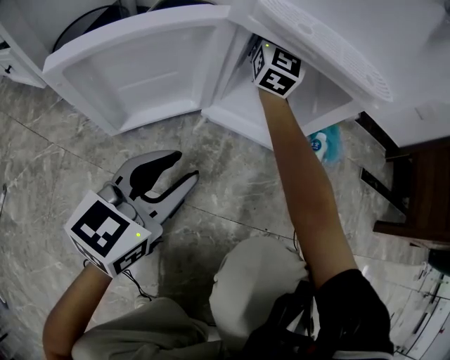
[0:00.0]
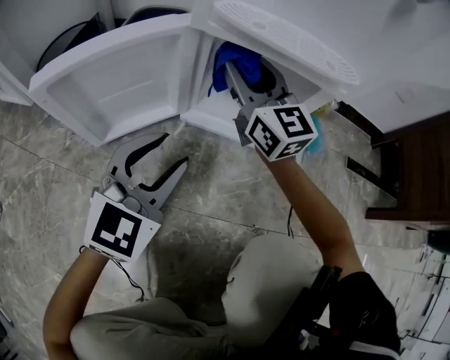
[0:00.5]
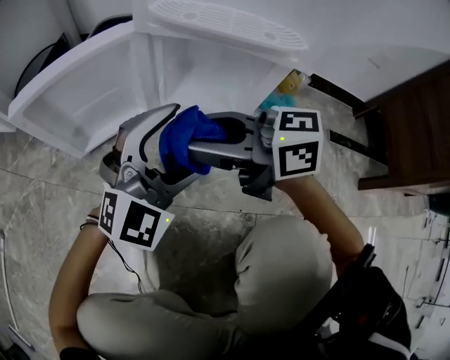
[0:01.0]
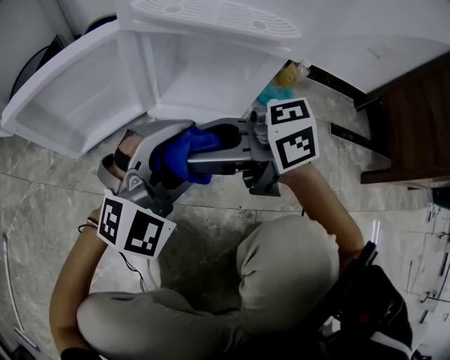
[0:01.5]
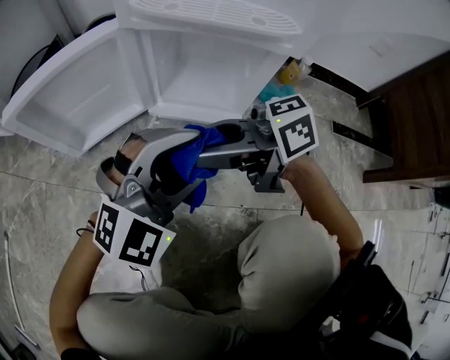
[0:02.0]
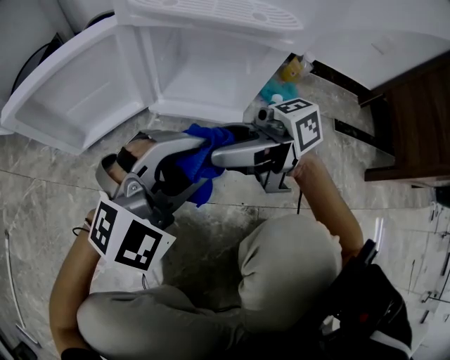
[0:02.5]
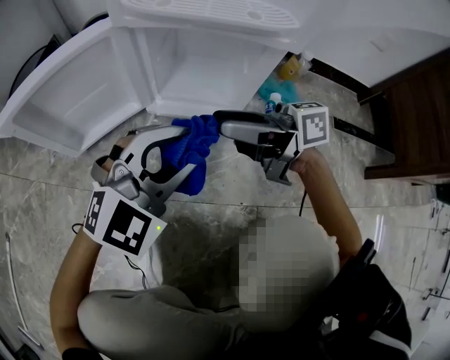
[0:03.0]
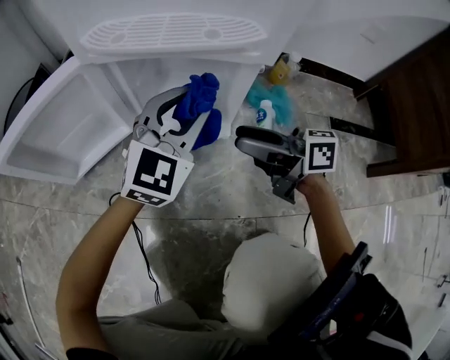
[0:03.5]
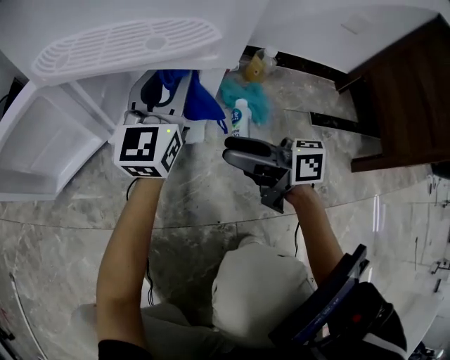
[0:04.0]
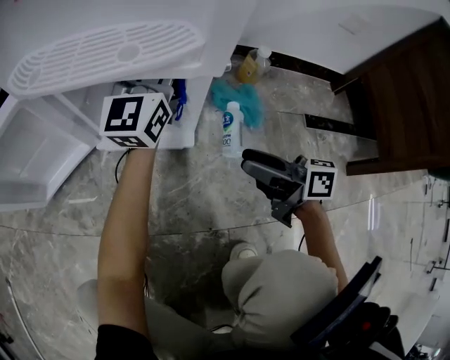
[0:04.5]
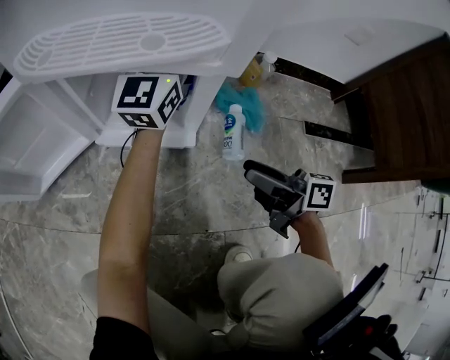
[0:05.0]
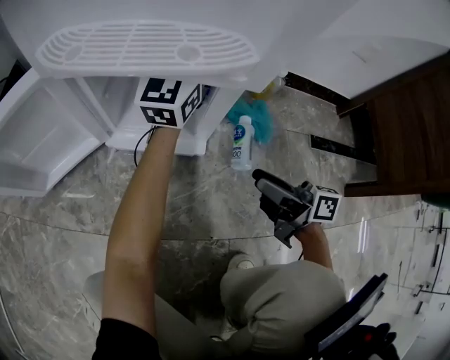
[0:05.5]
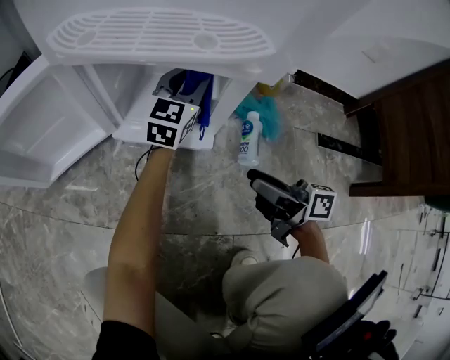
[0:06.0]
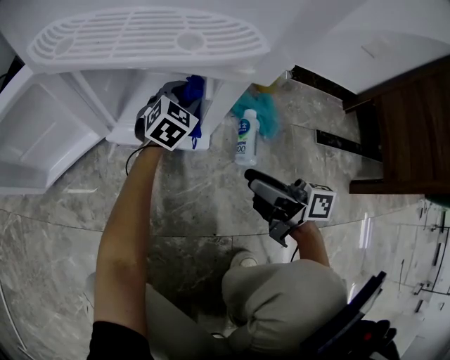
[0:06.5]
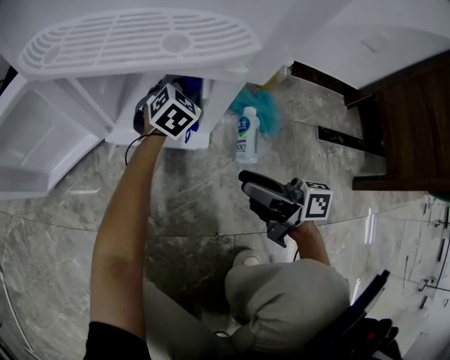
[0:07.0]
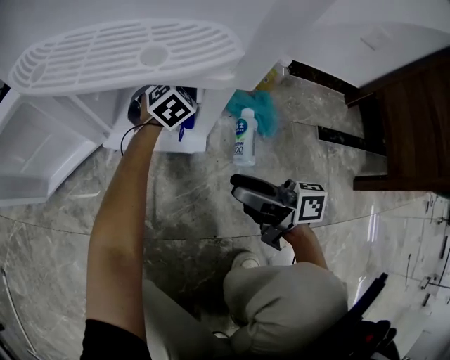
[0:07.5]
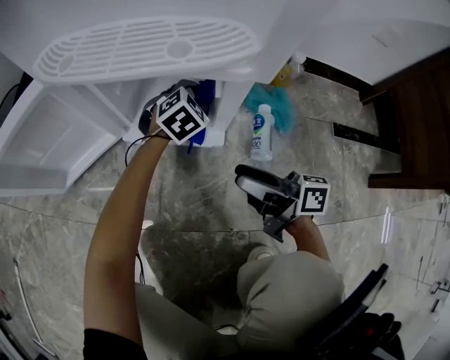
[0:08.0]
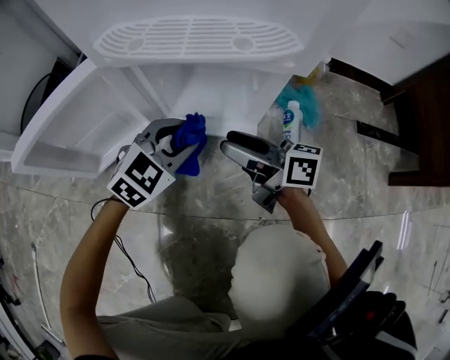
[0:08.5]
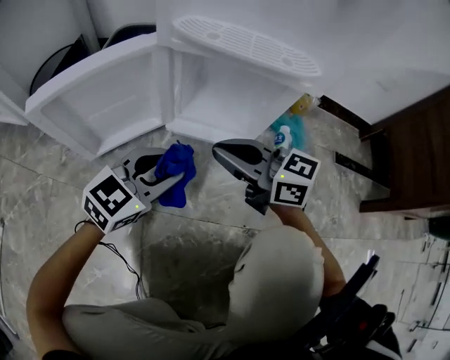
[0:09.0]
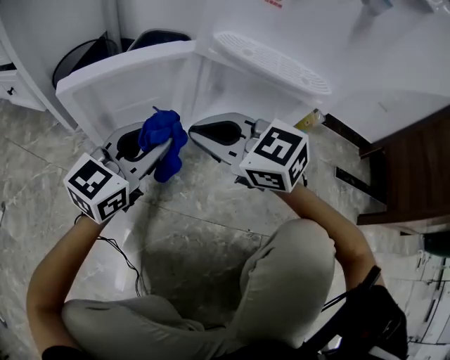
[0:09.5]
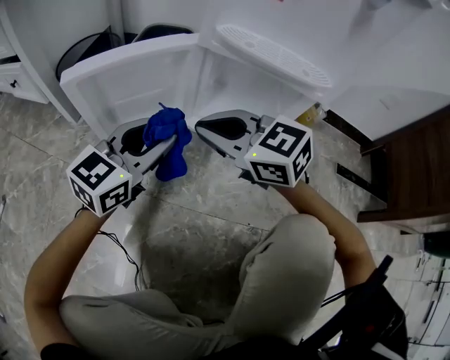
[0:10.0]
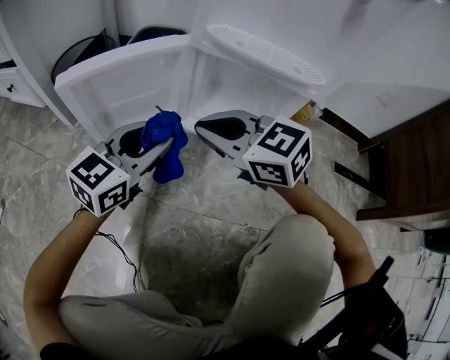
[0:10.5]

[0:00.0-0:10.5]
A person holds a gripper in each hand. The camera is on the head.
0:00.0 to 0:02.0: The left gripper moves roughly 15 cm, rotates around the line of its fingers by some 60 degrees, clockwise from behind, and opens, then closes again; the right gripper moves approximately 35 cm, and turns by approximately 100 degrees.
0:02.0 to 0:04.0: The right gripper changes place by approximately 20 cm, and rotates roughly 40 degrees. Meanwhile the left gripper moves about 25 cm, and swivels about 60 degrees.
0:04.0 to 0:06.5: The left gripper travels downward by roughly 20 cm, and tilts its fingers approximately 40 degrees downward. The right gripper changes place by approximately 5 cm.
0:06.5 to 0:08.5: The right gripper moves to the left and forward, some 15 cm. The left gripper shifts about 25 cm to the left, backward and upward.
0:08.5 to 0:10.5: The two grippers go approximately 20 cm to the left and upward. The left gripper swivels roughly 40 degrees. Meanwhile the right gripper twists approximately 50 degrees counterclockwise, seen from behind, and closes its fingers.

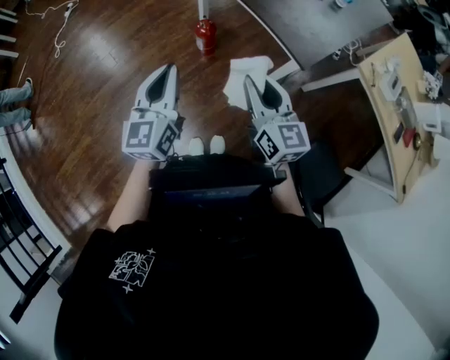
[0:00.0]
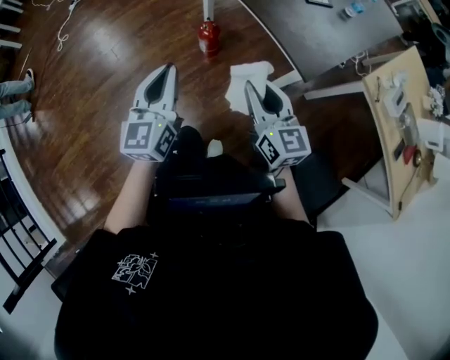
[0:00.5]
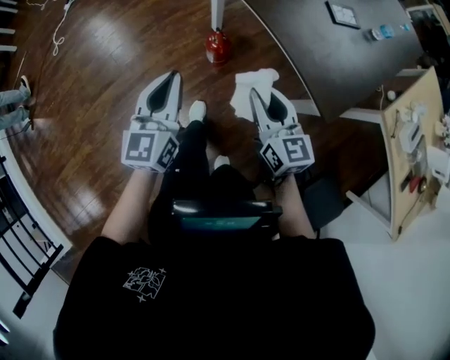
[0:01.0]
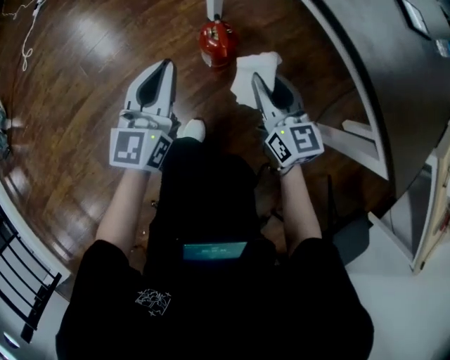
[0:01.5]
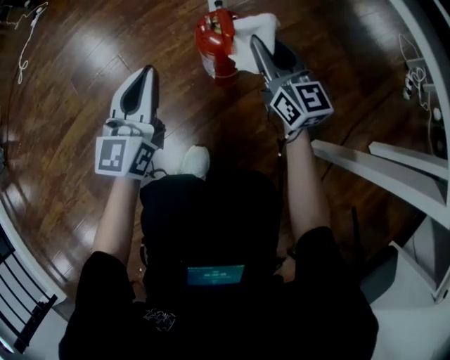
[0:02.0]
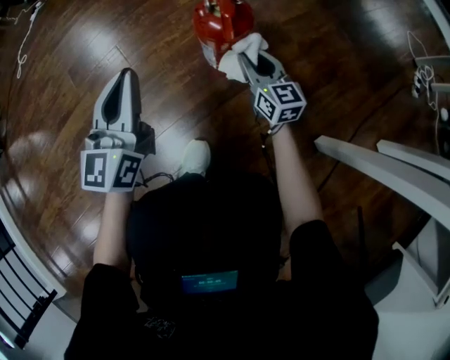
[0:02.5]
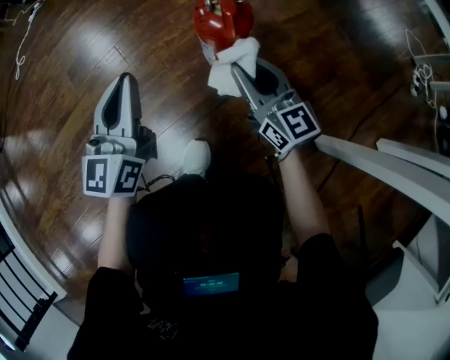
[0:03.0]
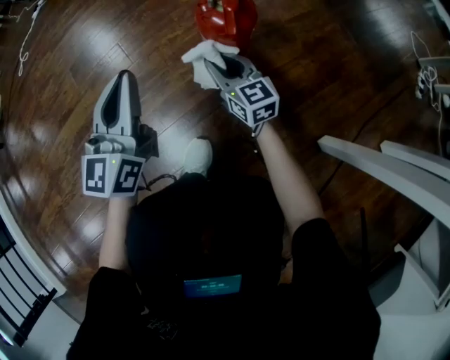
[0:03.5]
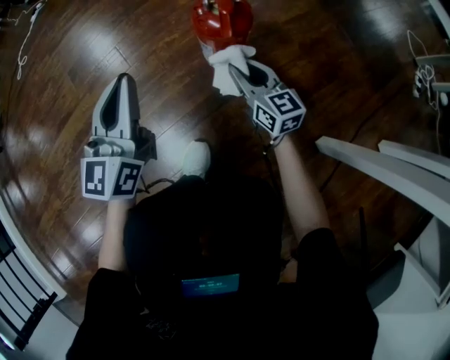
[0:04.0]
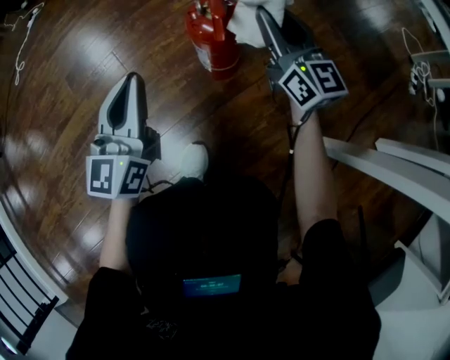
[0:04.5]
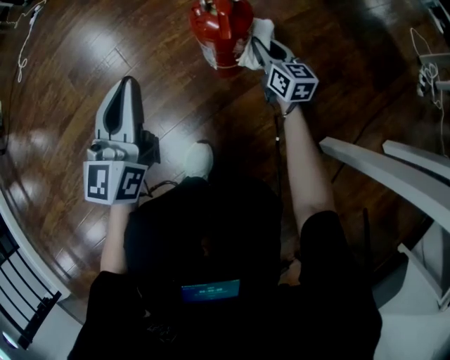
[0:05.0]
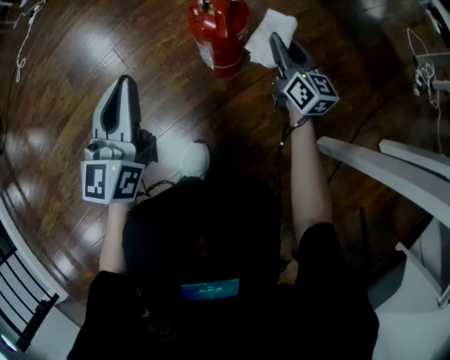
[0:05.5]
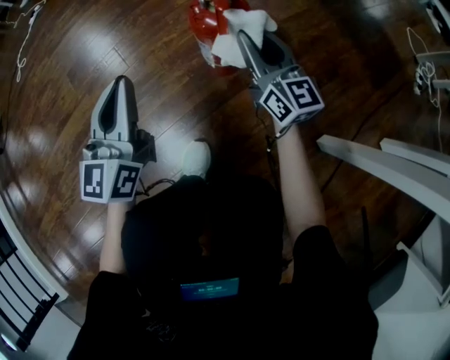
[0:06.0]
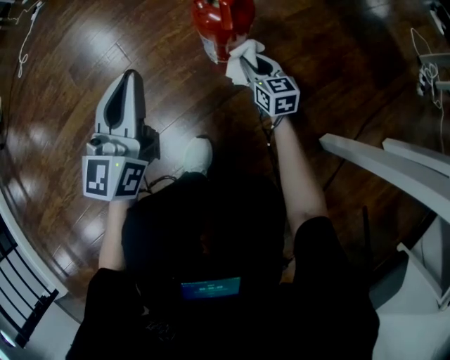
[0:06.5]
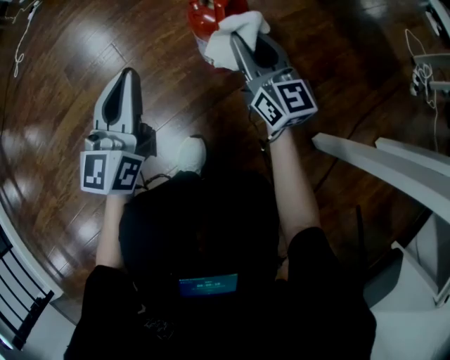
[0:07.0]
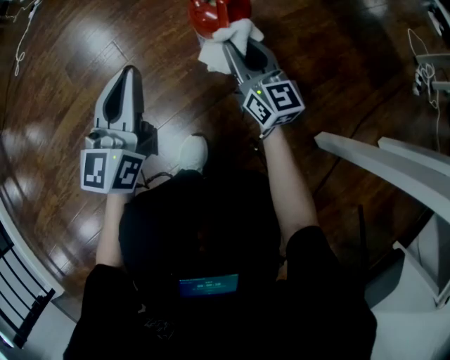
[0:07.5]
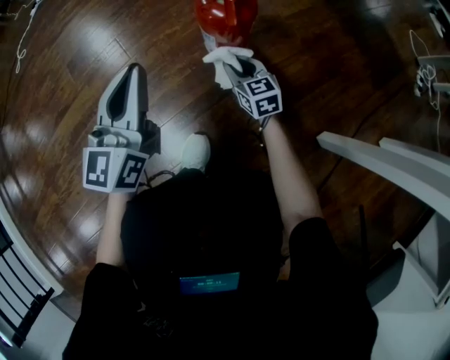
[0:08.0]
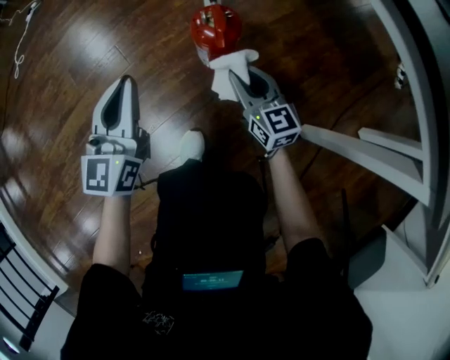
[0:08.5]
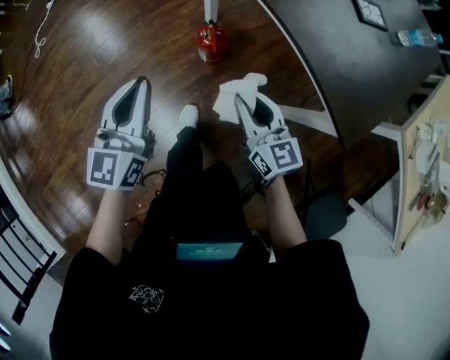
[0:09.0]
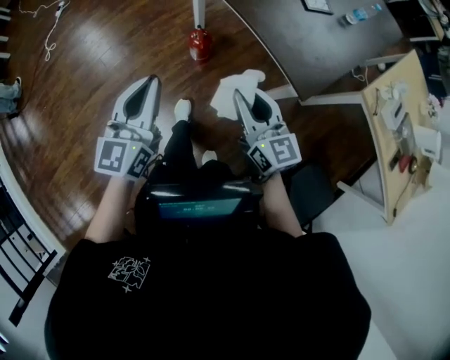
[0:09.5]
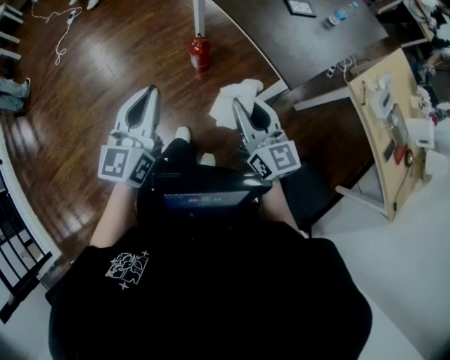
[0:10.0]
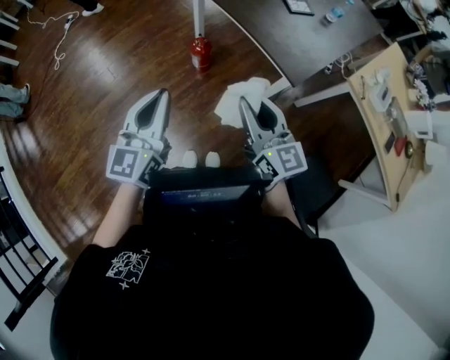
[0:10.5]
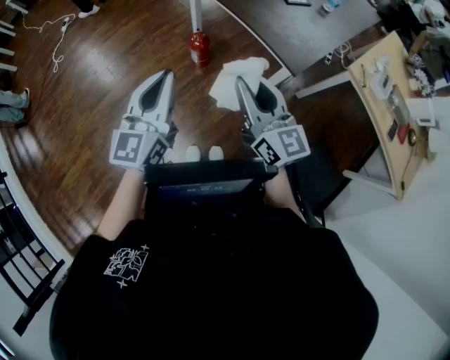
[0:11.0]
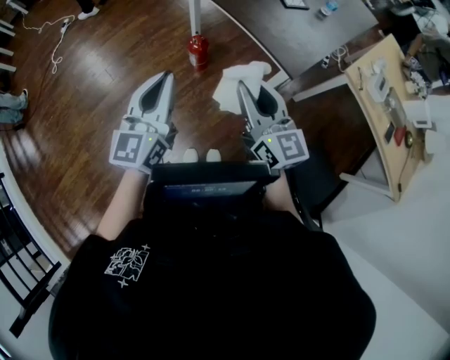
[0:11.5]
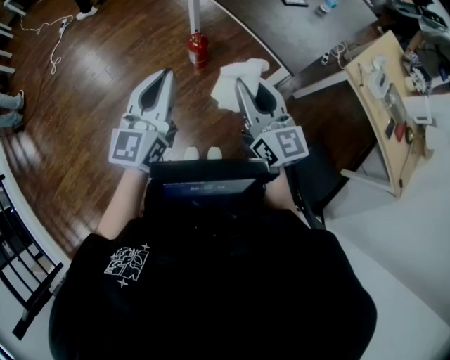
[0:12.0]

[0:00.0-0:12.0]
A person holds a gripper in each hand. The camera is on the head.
0:00.0 to 0:02.0: Both grippers travel together downward and forward, about 70 cm.
0:02.0 to 0:04.0: The right gripper moves up and down over about 15 cm, changing direction 2 times.
0:04.0 to 0:06.0: The right gripper goes up and down, approximately 20 cm each way, reversing 2 times.
0:06.0 to 0:08.0: The right gripper swings up and down, approximately 20 cm each way, with 2 reversals, and tilts its fingers some 30 degrees downward.
0:08.0 to 0:10.0: Both grippers move upward and backward, roughly 80 cm. The right gripper changes its angle by about 30 degrees.
0:10.0 to 0:12.0: The right gripper heads upward, covering about 5 cm.

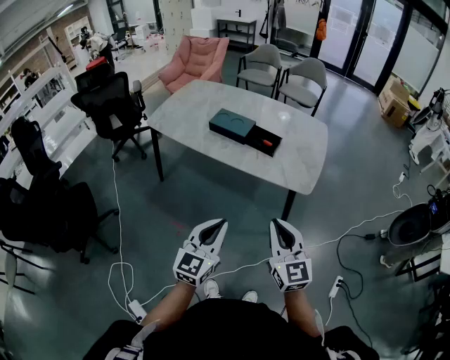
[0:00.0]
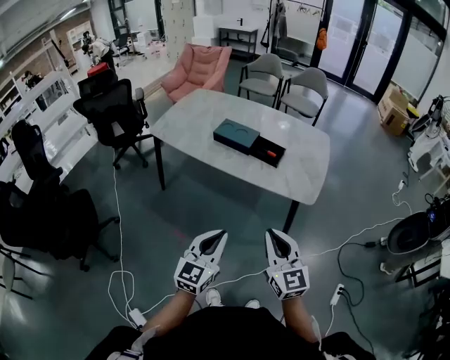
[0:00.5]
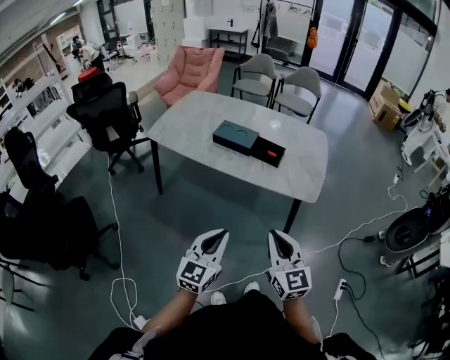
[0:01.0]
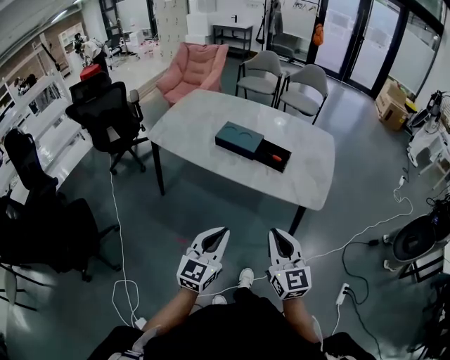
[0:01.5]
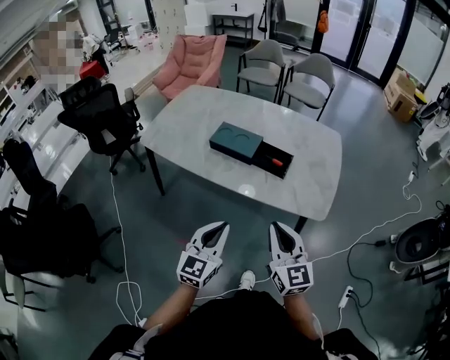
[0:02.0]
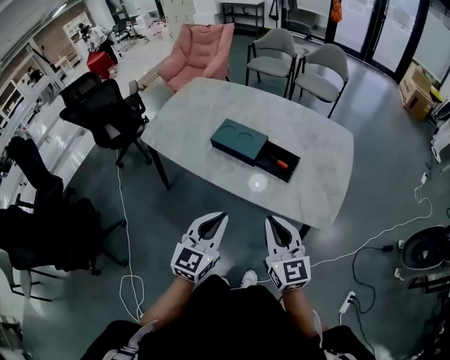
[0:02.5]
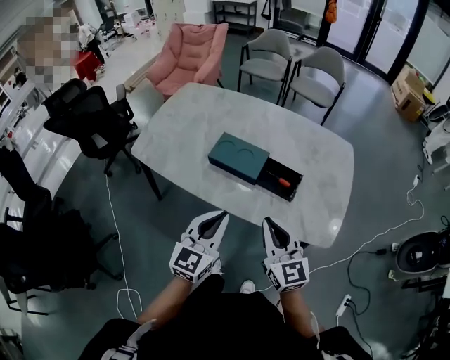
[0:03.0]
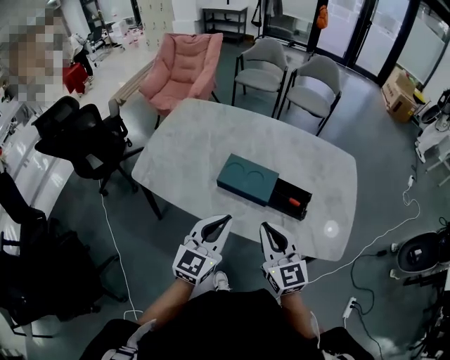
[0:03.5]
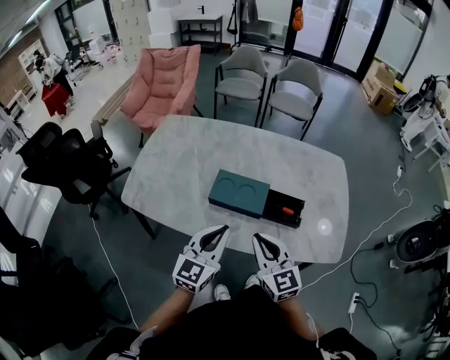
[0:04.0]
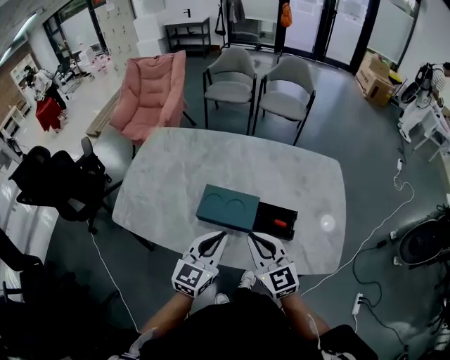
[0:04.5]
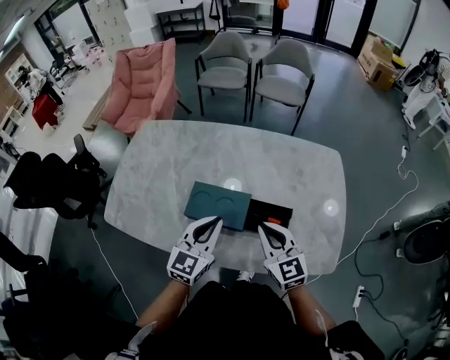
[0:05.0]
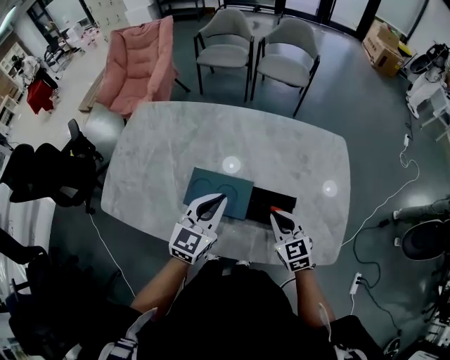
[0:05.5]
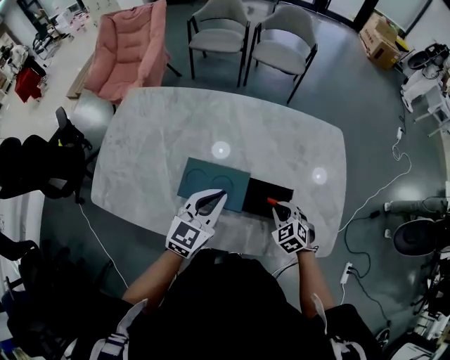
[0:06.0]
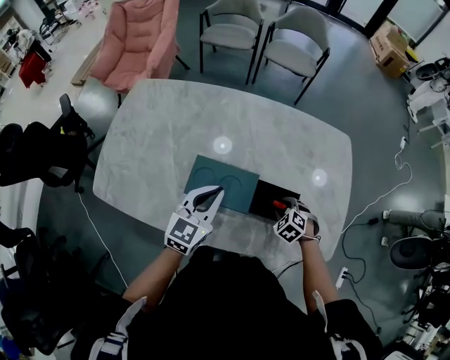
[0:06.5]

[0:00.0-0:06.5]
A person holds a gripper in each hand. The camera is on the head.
0:00.0 to 0:02.0: Both grippers move forward, some 15 cm.
0:02.0 to 0:04.5: The left gripper travels forward by approximately 30 cm. Meanwhile the right gripper moves forward and to the left, about 35 cm.
0:04.5 to 0:06.5: The left gripper shifts about 15 cm forward and downward, while the right gripper travels downward, to the right and forward by approximately 30 cm, angles its fingers downward, by roughly 60 degrees, and opens up.
